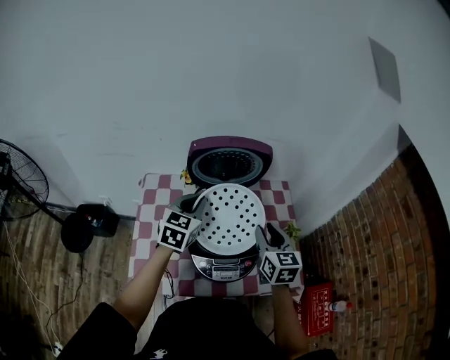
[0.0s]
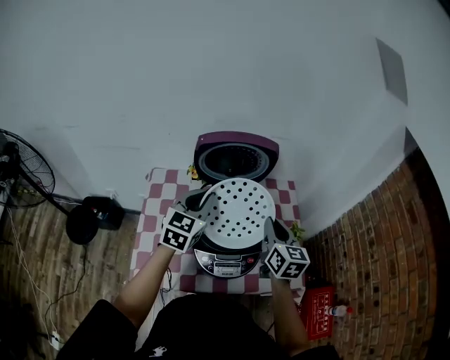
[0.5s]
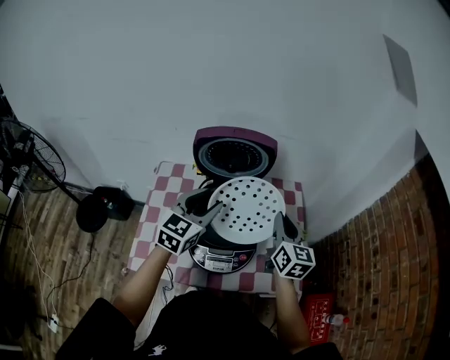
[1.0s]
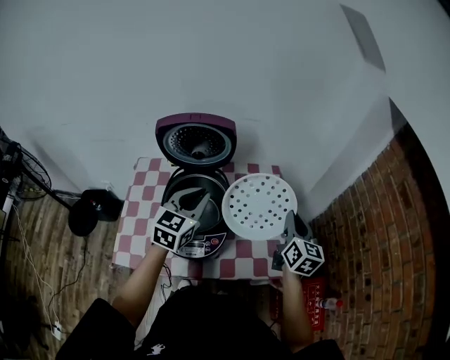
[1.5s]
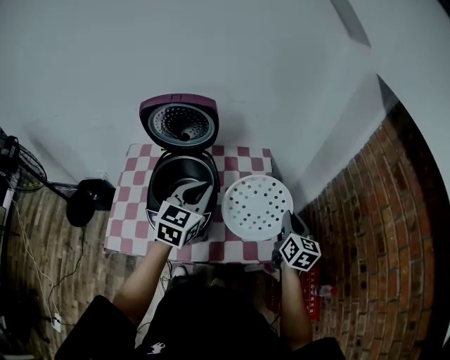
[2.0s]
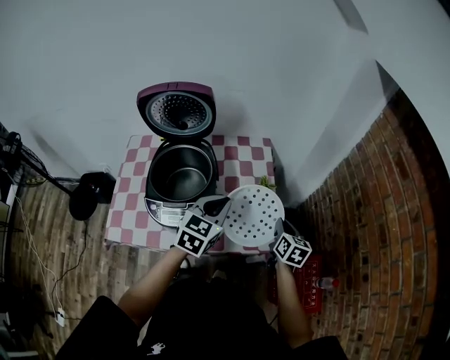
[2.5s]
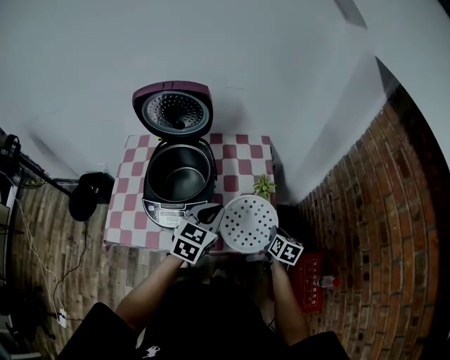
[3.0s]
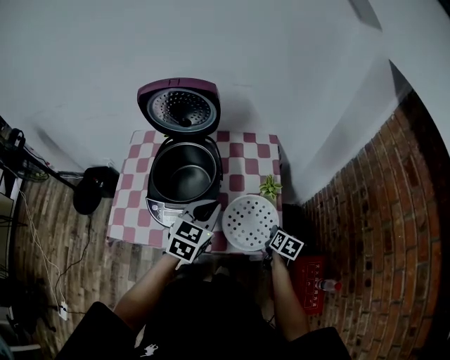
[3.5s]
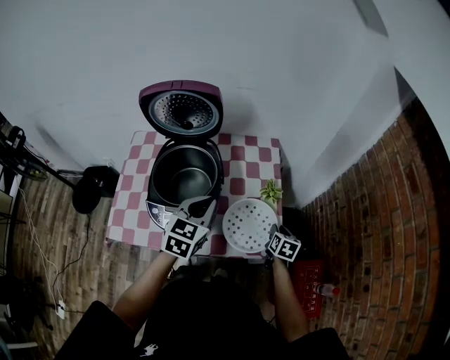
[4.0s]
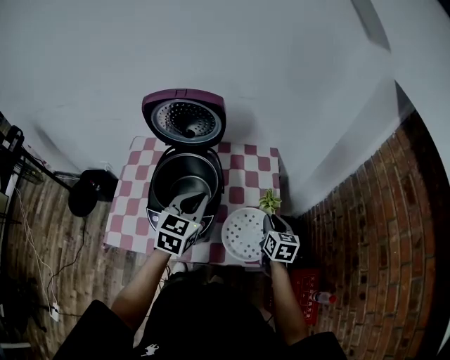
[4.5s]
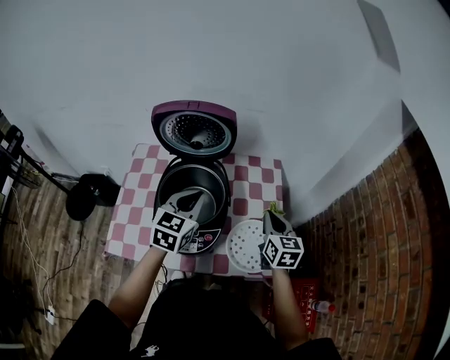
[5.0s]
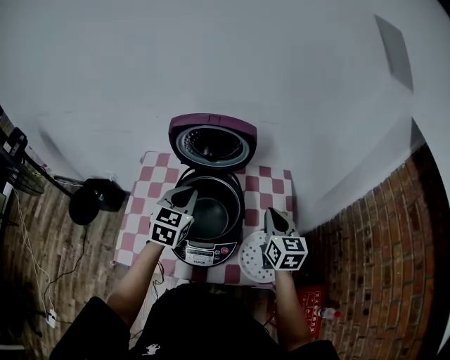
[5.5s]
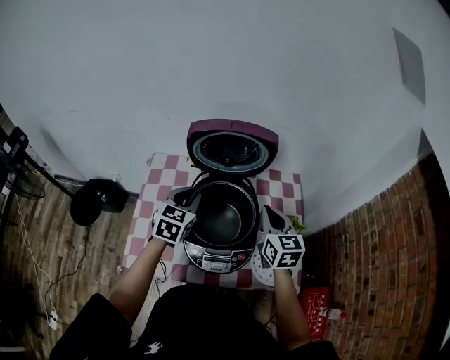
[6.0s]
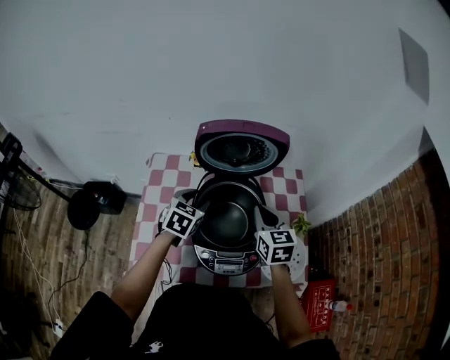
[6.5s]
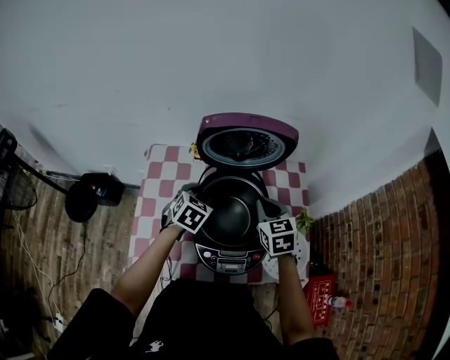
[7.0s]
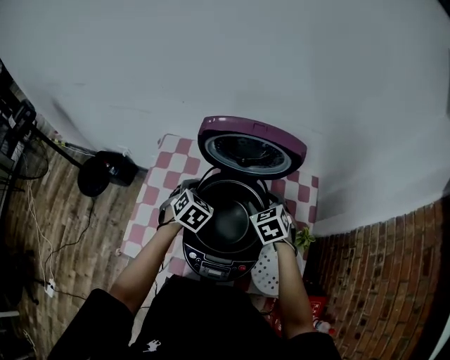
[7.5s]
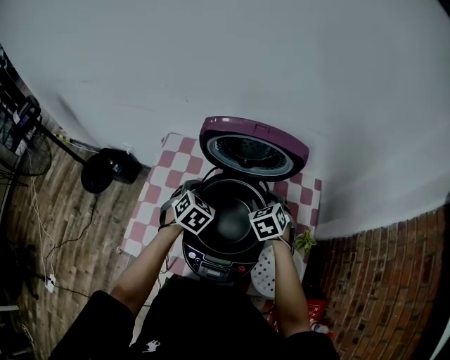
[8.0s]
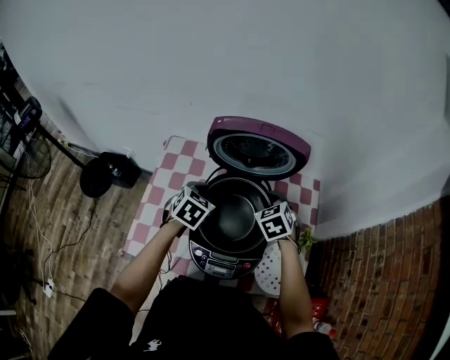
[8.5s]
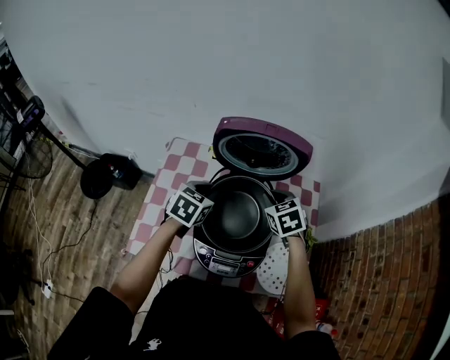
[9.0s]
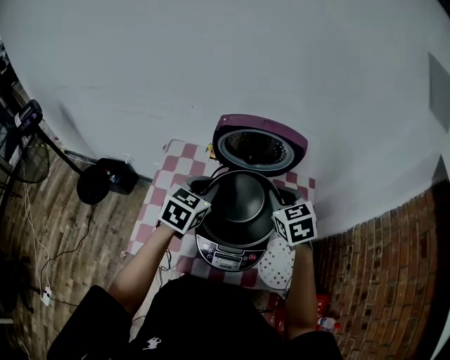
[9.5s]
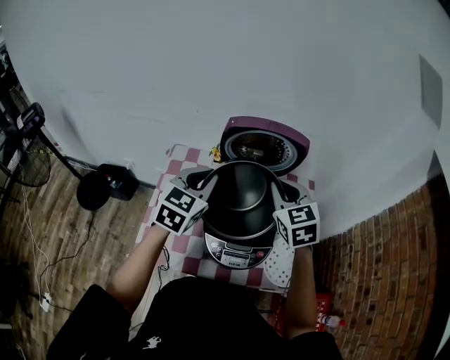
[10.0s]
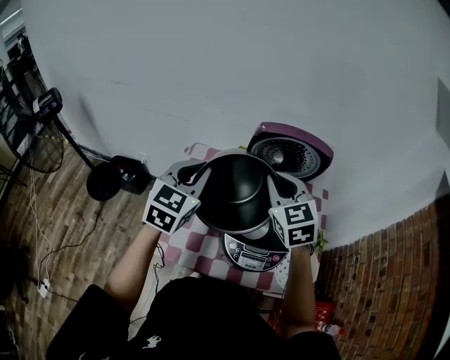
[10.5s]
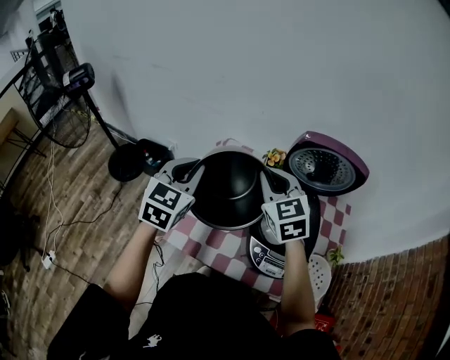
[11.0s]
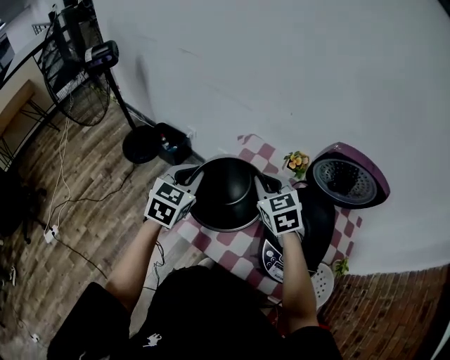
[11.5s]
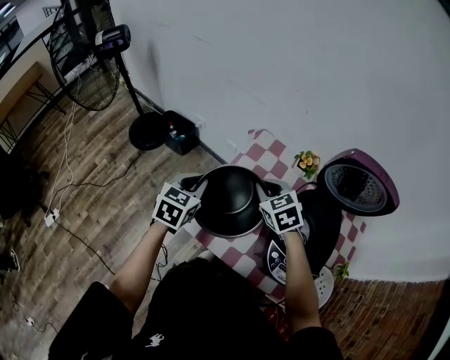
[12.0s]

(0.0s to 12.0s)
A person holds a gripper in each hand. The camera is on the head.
0.0s - 2.0s: Both grippers move to the right, some 25 cm. The right gripper closes its fingers. The left gripper opens, then closes again.
2.0s - 4.0s: The right gripper is displaced downward by roughly 20 cm, and changes its angle by approximately 30 degrees. The left gripper shifts approximately 5 cm downward.
4.0s - 6.0s: The left gripper shifts approximately 25 cm to the left and forward; the right gripper moves to the left and upward, approximately 35 cm, rotates about 40 degrees, and closes up.
6.0s - 8.0s: The right gripper travels downward, forward and to the left by roughly 15 cm, tilts its fingers roughly 30 degrees downward, and opens its fingers; the left gripper goes some 10 cm downward, and turns by about 30 degrees.
8.0s - 10.0s: Both grippers move upward, roughly 20 cm. The left gripper tips its fingers upward by some 30 degrees, and closes, while the right gripper rotates some 30 degrees, and closes.
10.0s - 12.0s: The right gripper moves about 35 cm, and swivels approximately 40 degrees. The left gripper ends up roughly 30 cm from where it was, and rotates about 30 degrees.

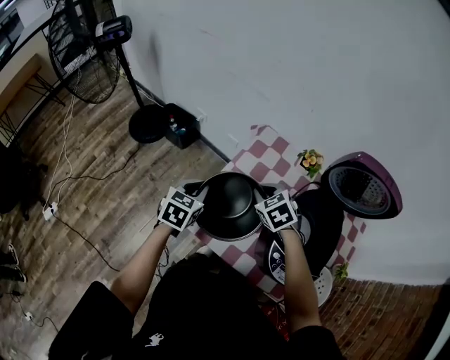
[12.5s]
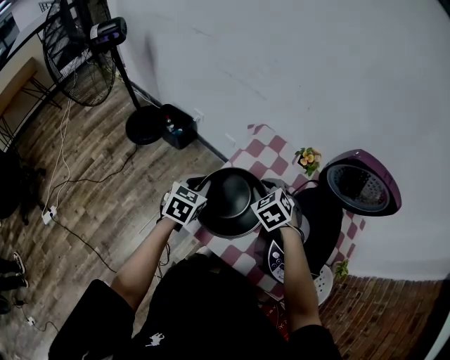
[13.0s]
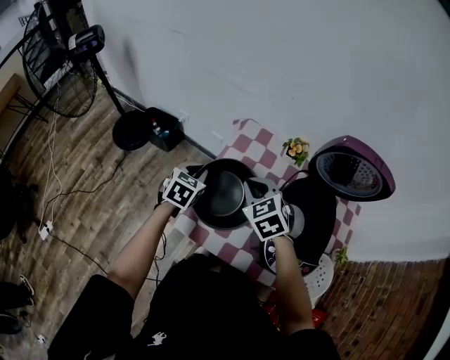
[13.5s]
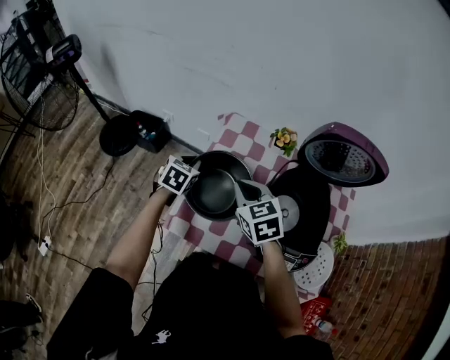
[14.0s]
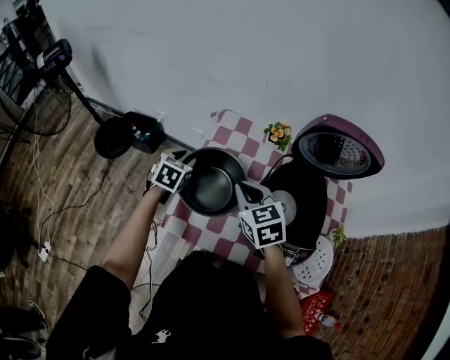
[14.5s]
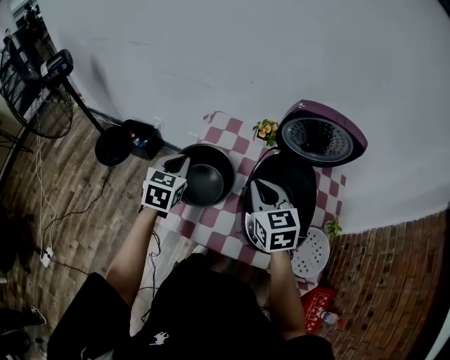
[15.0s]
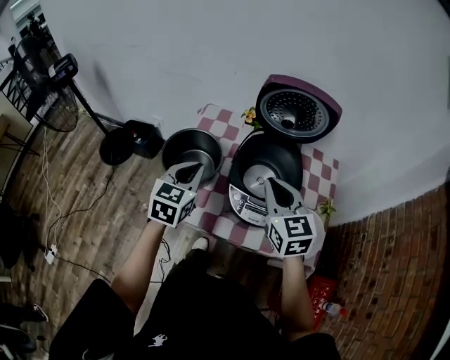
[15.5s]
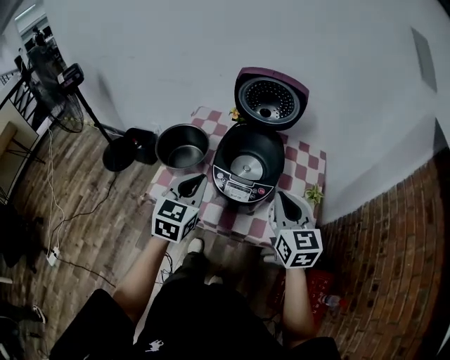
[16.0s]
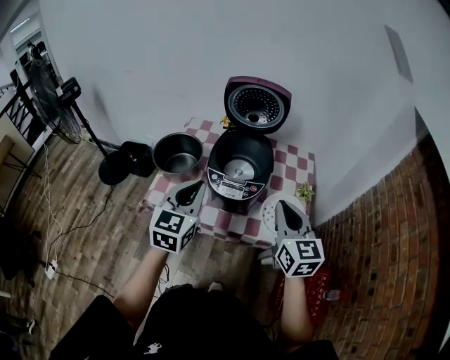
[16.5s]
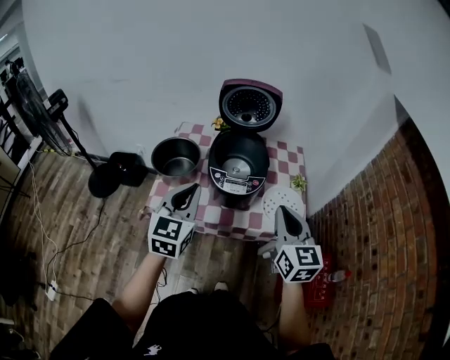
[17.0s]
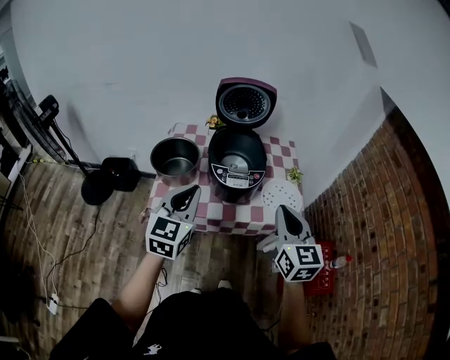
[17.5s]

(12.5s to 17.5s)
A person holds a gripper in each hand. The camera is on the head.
12.5s - 15.0s: The right gripper heads upward, to the right and backward, covering roughly 15 cm, and turns by about 40 degrees; the left gripper goes roughly 10 cm upward and to the right, and opens, then closes once more.
15.0s - 17.5s: The right gripper goes some 40 cm backward and to the right, and swivels approximately 30 degrees; the left gripper shifts about 35 cm backward, to the right and upward, and swivels roughly 30 degrees.

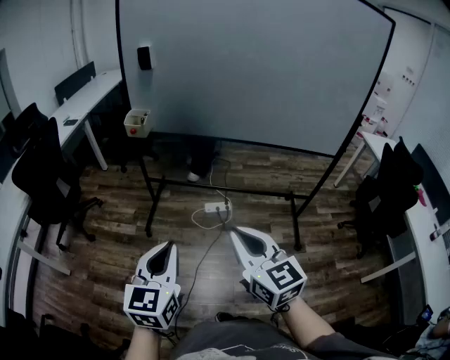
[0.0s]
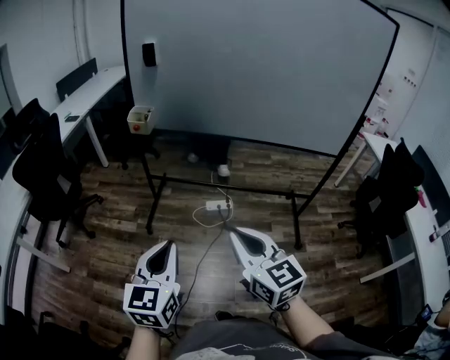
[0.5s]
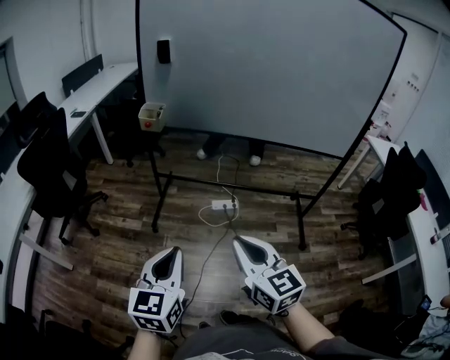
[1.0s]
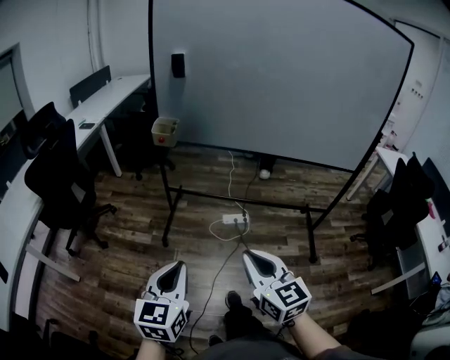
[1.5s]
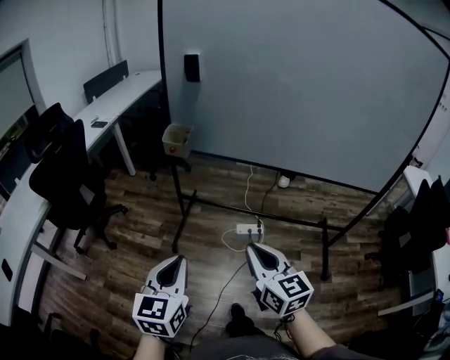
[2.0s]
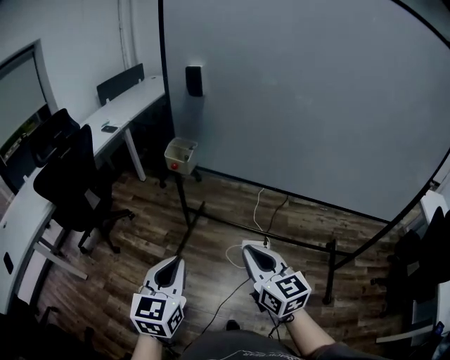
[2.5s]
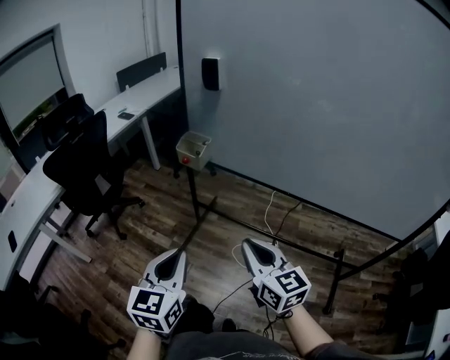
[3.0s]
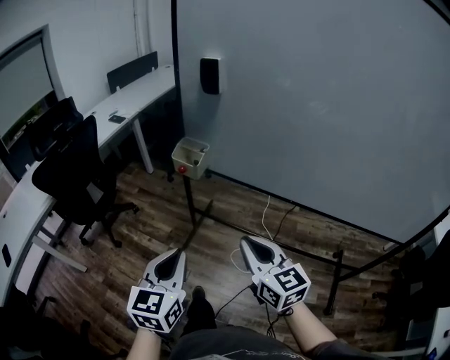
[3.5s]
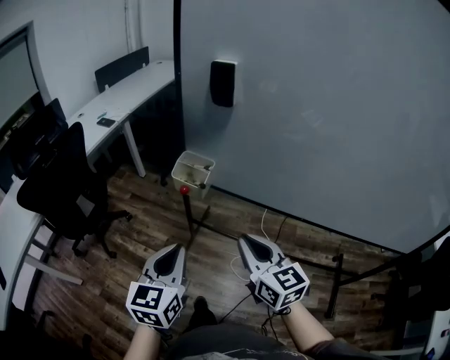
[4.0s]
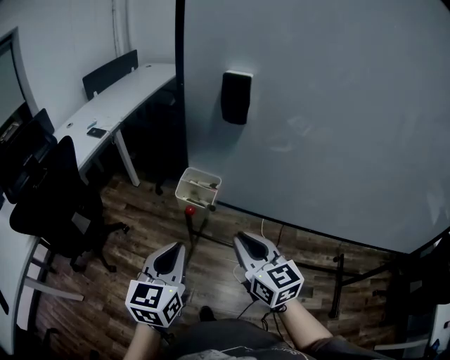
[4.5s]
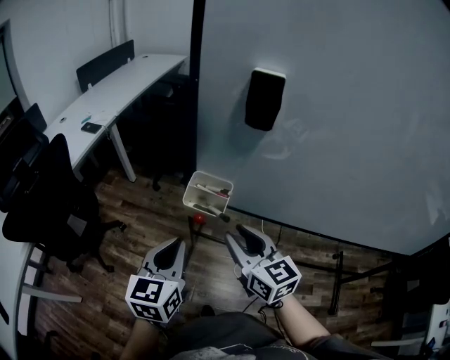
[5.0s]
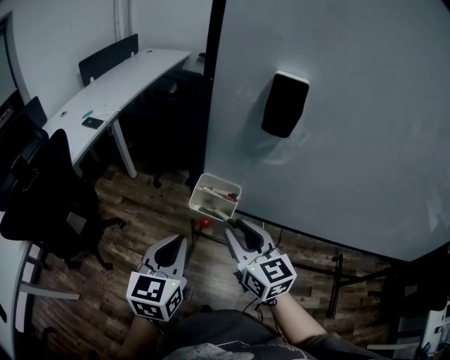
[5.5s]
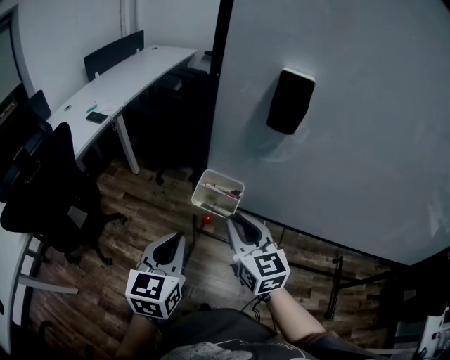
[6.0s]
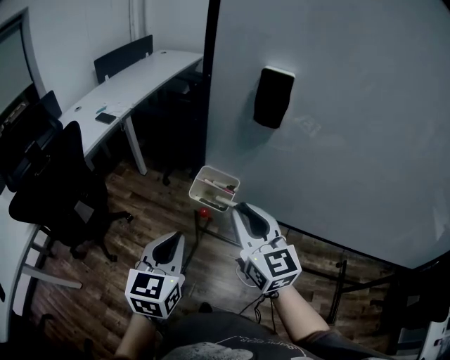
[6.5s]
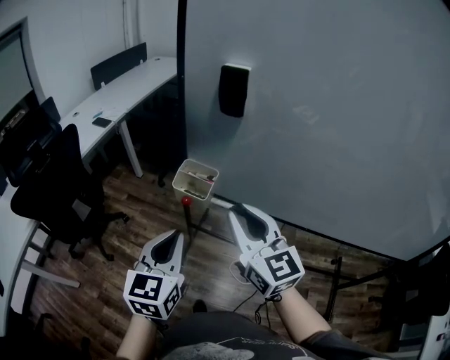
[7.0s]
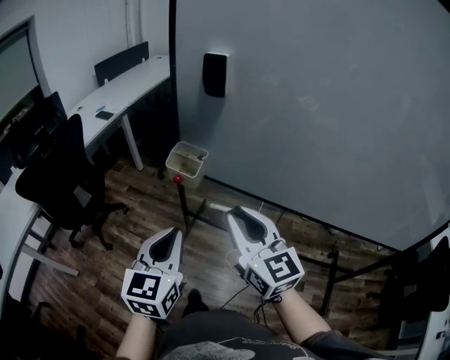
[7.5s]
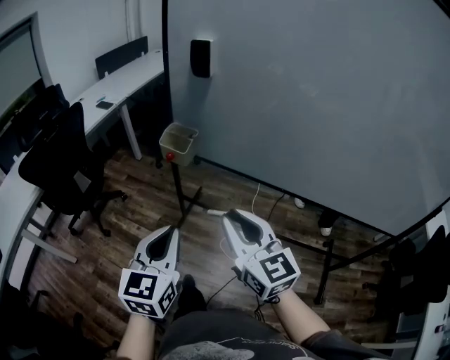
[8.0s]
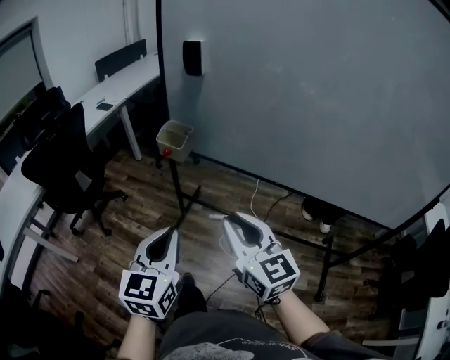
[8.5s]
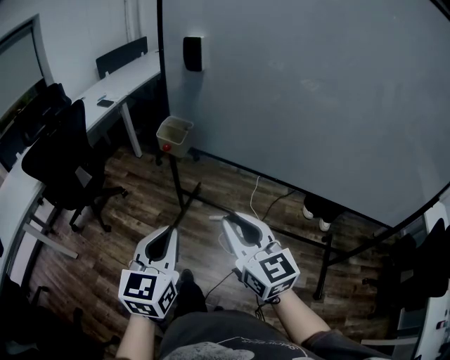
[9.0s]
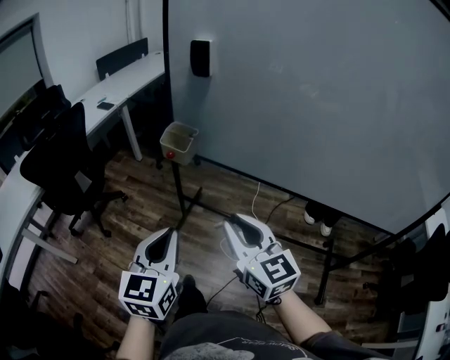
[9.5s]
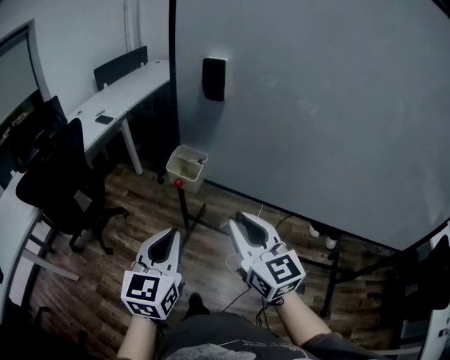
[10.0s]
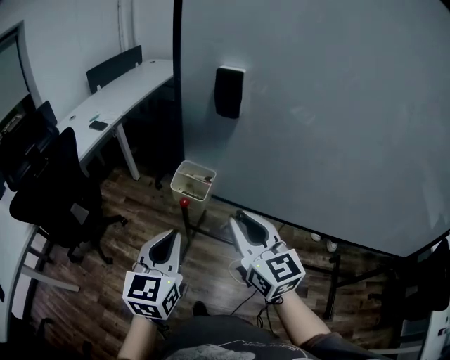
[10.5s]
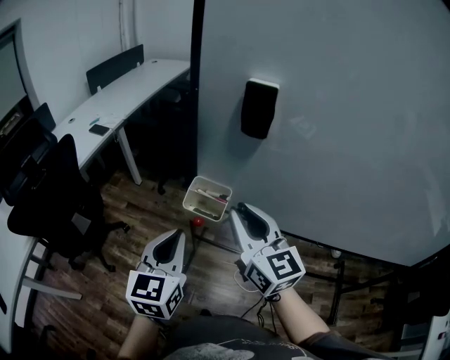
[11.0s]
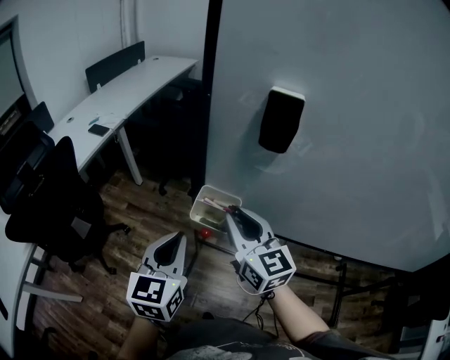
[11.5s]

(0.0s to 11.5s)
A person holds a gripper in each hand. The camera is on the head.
0.0s - 2.0s: Both grippers travel together forward and to the left, approximately 15 cm.
2.0s - 4.0s: Both grippers move forward, roughly 30 cm.
4.0s - 6.0s: The grippers both shift forward and to the left by some 20 cm.
6.0s - 7.5s: The right gripper shifts approximately 20 cm backward, upward and to the right, while the left gripper goes roughly 20 cm backward and to the right.
7.5s - 9.5s: The two grippers go roughly 10 cm backward.
9.5s - 11.5s: The grippers both shift forward by some 30 cm.
